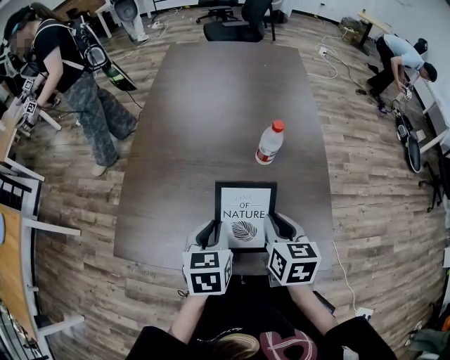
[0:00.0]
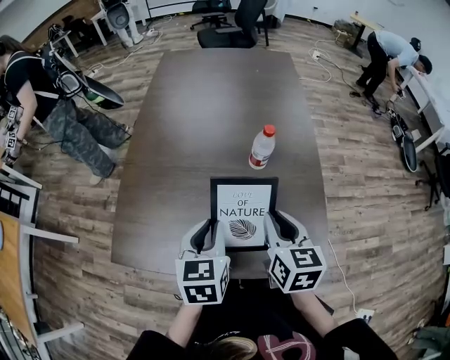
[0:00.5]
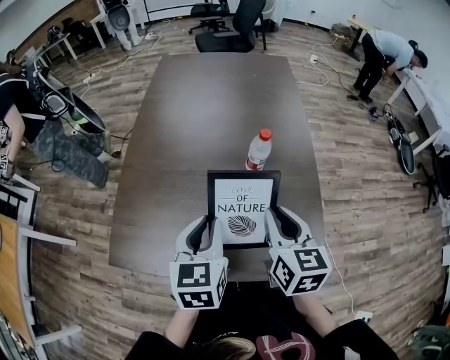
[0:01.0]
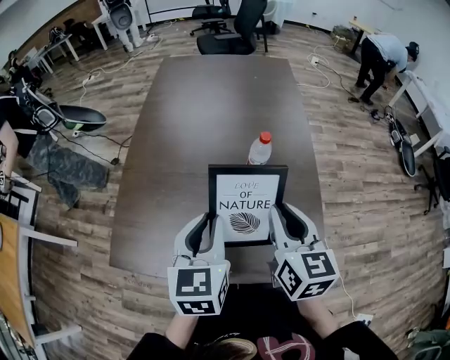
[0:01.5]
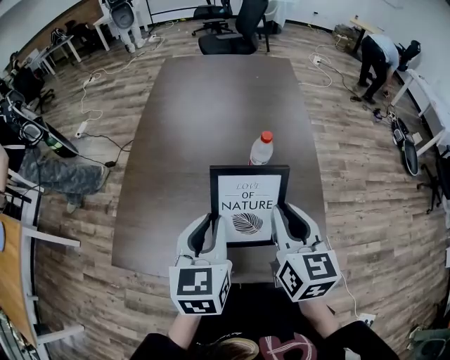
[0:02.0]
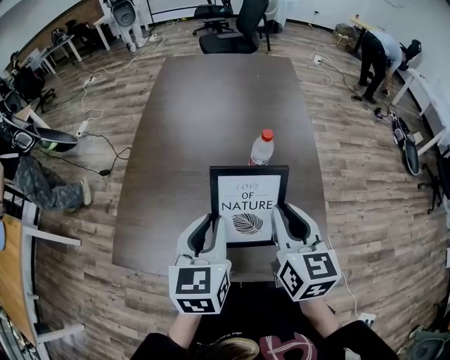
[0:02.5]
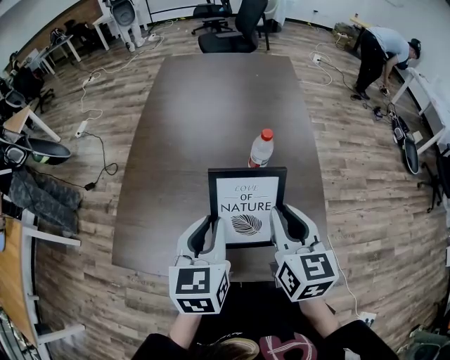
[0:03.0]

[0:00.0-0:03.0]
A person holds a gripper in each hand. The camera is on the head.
0:00.0 to 0:01.5: Both grippers travel together upward, about 10 cm.
0:01.5 to 0:03.0: The grippers stay close to where they were, moving slightly.

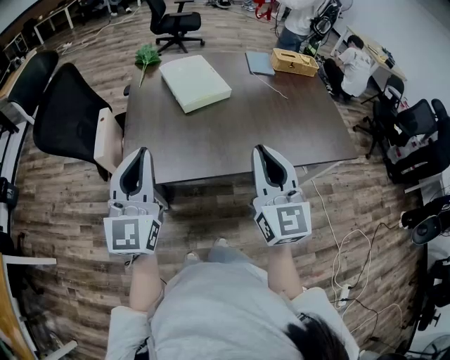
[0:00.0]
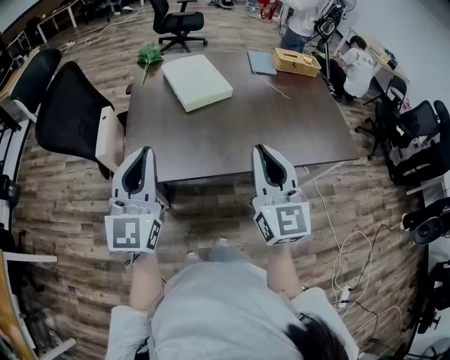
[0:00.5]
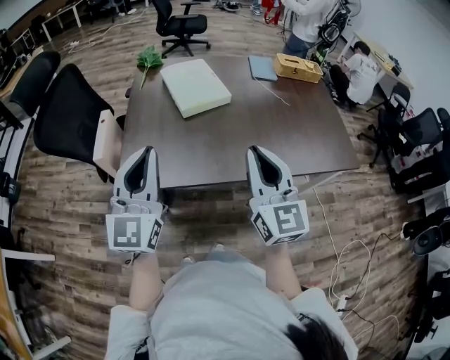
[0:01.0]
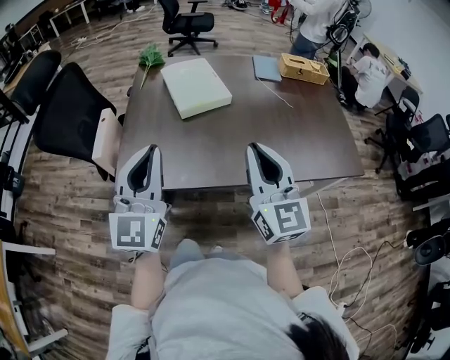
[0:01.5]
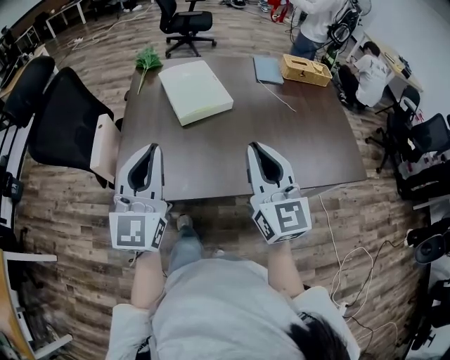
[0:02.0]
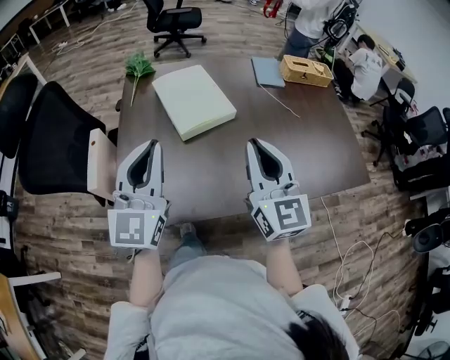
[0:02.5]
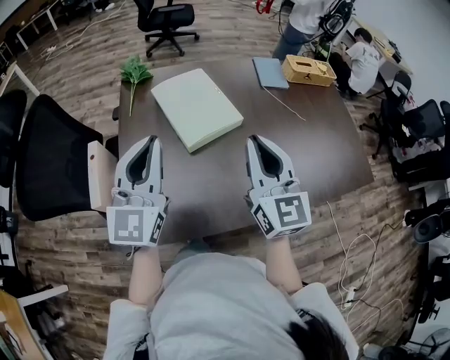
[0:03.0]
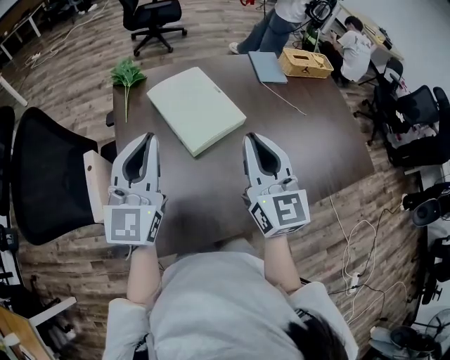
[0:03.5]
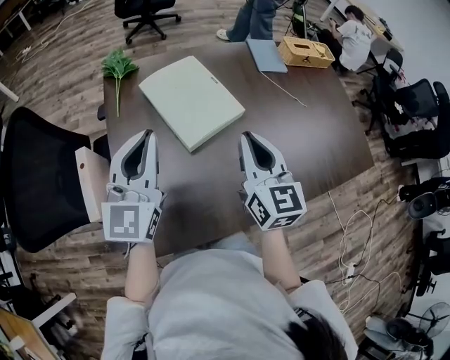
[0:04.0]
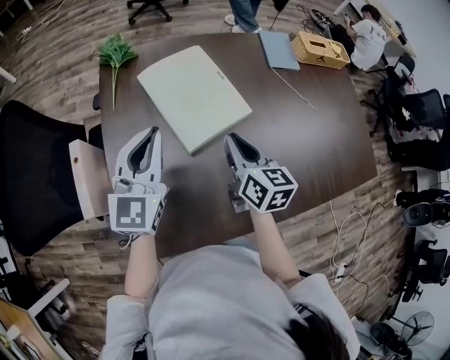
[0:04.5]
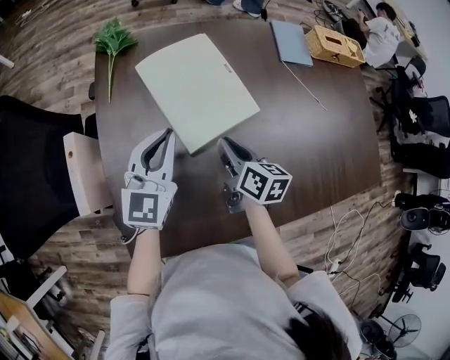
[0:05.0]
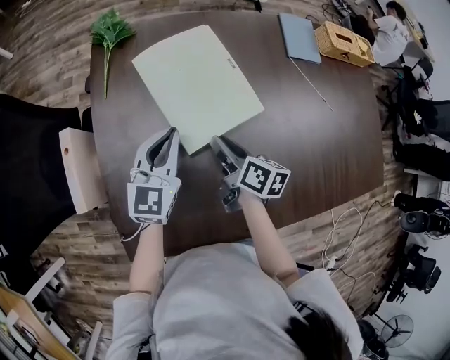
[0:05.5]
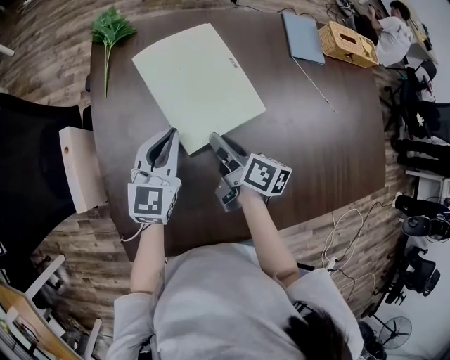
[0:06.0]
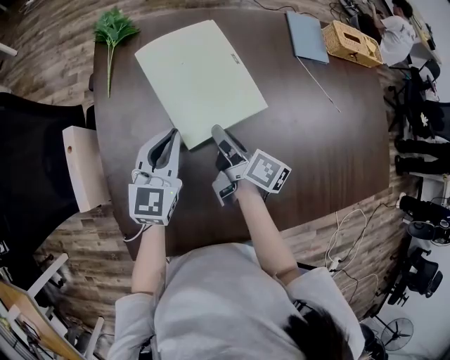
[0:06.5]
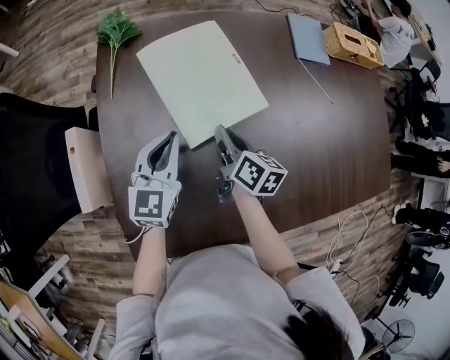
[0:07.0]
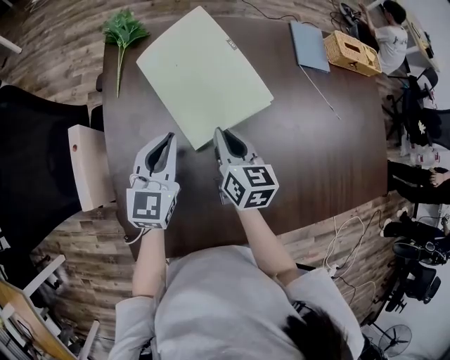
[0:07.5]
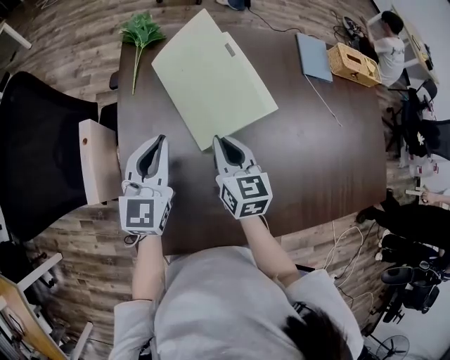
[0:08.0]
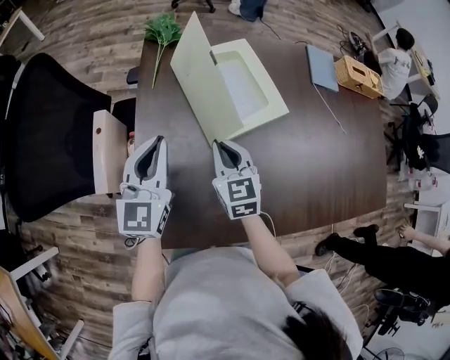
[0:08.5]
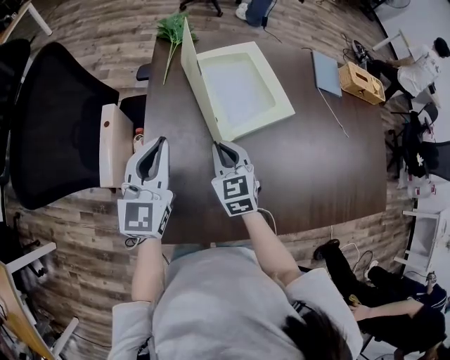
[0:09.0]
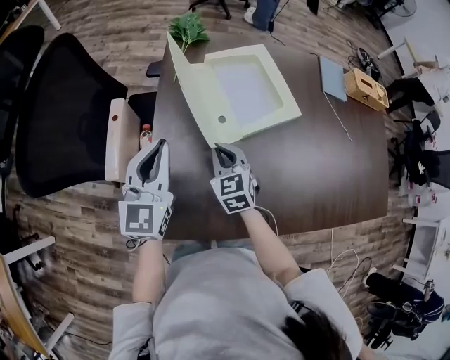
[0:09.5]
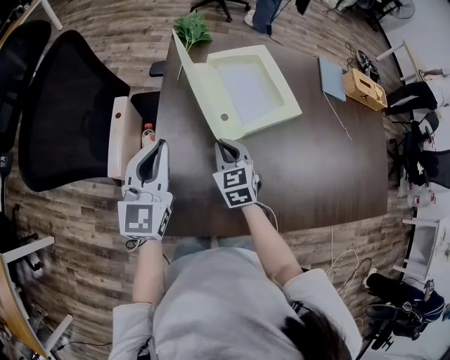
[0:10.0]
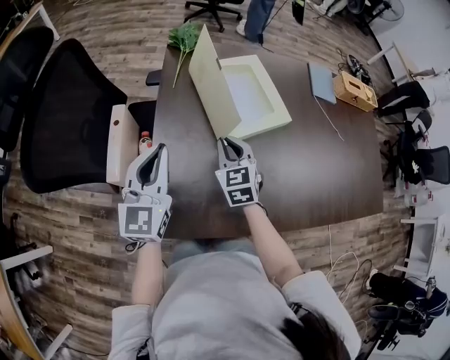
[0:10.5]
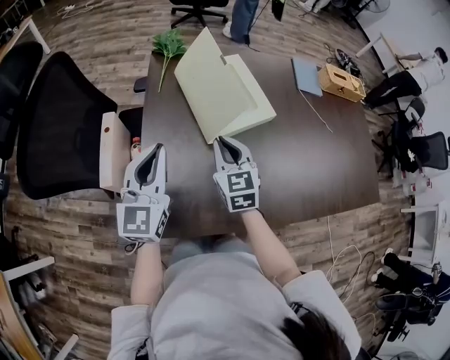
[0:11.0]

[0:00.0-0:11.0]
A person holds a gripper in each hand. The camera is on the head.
0:00.0 to 0:02.0: The left gripper heads forward and to the right, covering approximately 10 cm. The right gripper travels forward by about 10 cm.
0:02.0 to 0:03.5: The grippers both shift forward and to the left by approximately 25 cm.
0:03.5 to 0:05.5: Both grippers travel together downward and forward, some 25 cm. The right gripper twists about 50 degrees clockwise, seen from behind. Meanwhile the left gripper swivels about 20 degrees.
0:05.5 to 0:07.5: The right gripper shifts by about 5 cm, and turns by some 30 degrees.
0:07.5 to 0:09.0: The left gripper shifts about 20 cm to the left, backward and upward, while the right gripper shifts roughly 15 cm to the left and backward, and swivels about 40 degrees.
0:09.0 to 0:11.0: The left gripper shifts roughly 5 cm backward. Meanwhile the right gripper heads upward, covering roughly 5 cm.

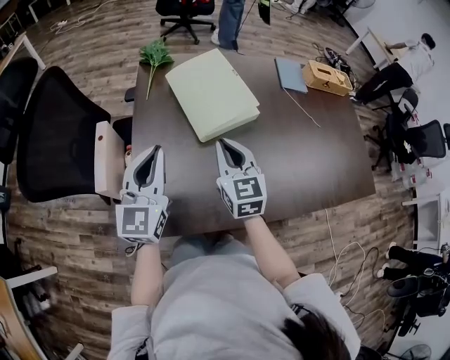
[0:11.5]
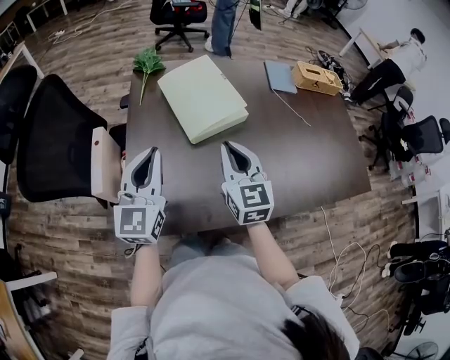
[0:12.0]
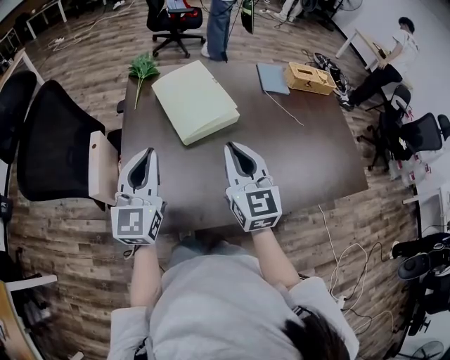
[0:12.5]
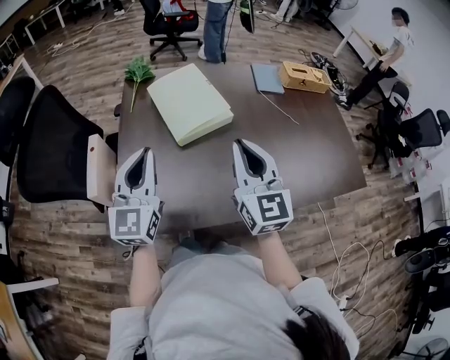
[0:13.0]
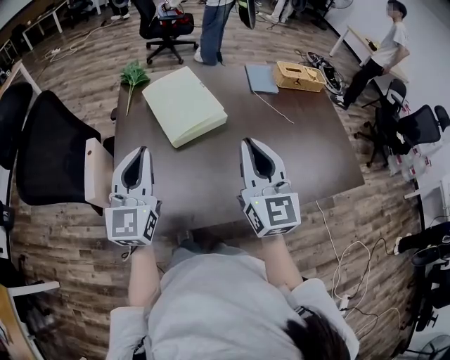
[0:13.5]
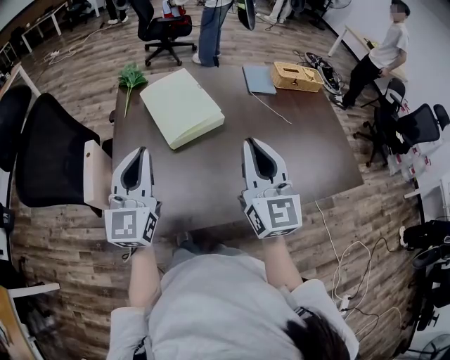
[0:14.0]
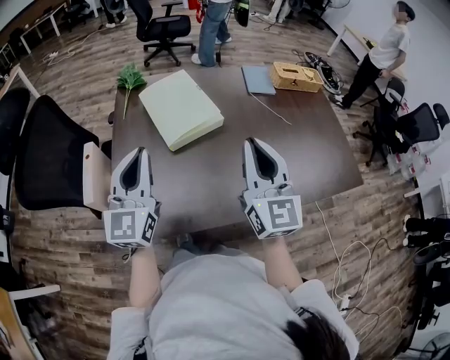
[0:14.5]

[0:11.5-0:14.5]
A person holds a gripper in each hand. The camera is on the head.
0:11.5 to 0:13.0: The left gripper travels to the right by roughly 5 cm. Meanwhile the right gripper is displaced to the right, upward and backward by about 20 cm.
0:13.0 to 0:14.5: The right gripper goes approximately 5 cm to the right.

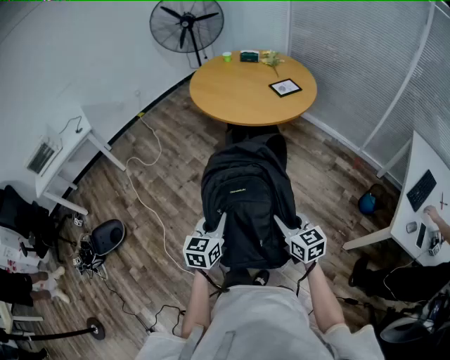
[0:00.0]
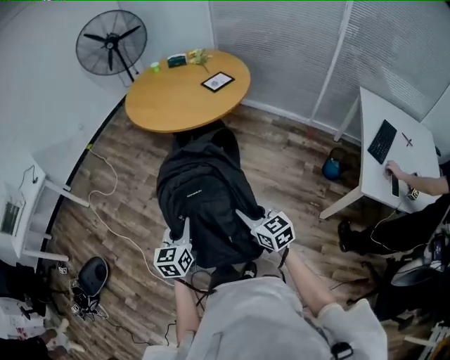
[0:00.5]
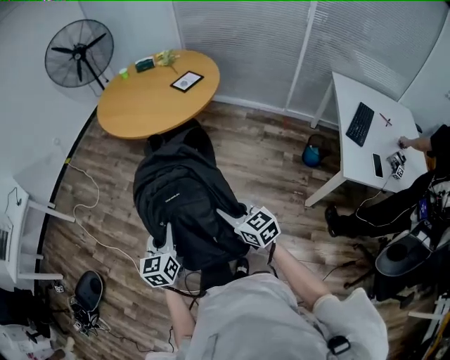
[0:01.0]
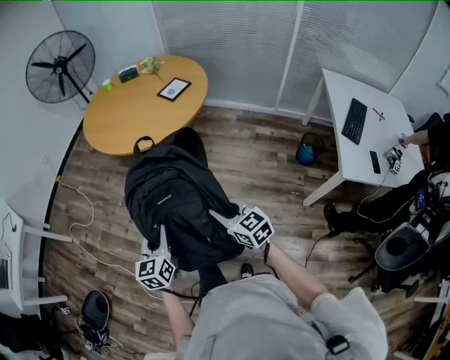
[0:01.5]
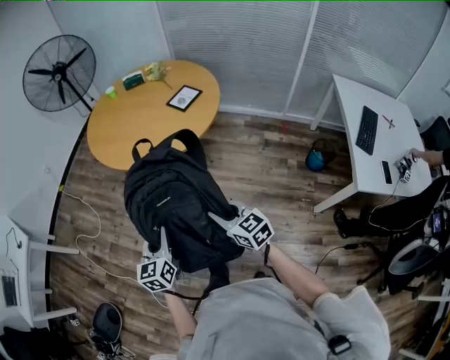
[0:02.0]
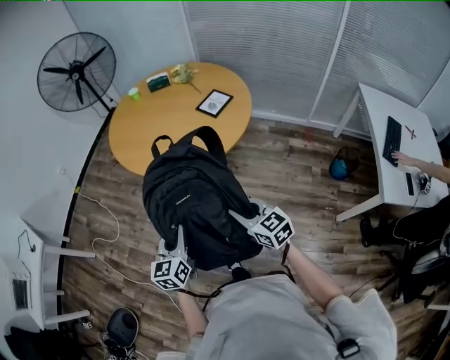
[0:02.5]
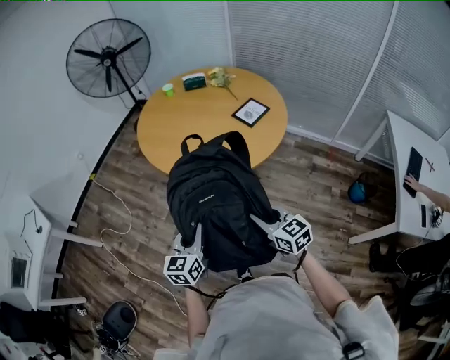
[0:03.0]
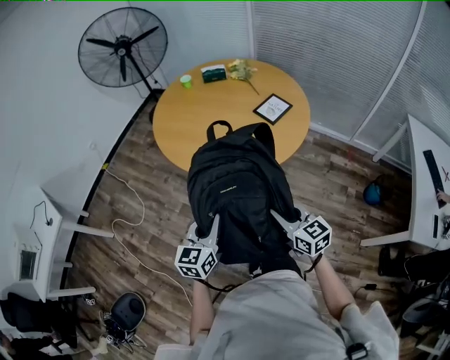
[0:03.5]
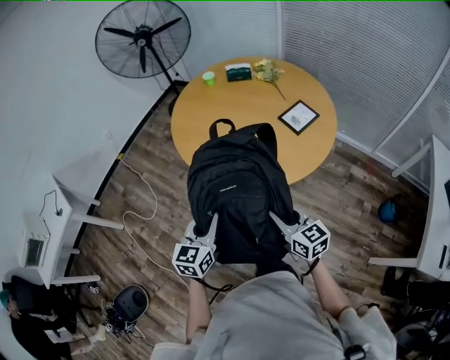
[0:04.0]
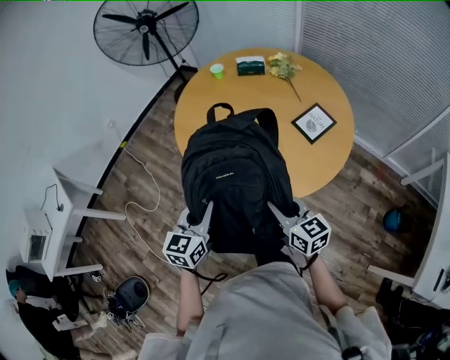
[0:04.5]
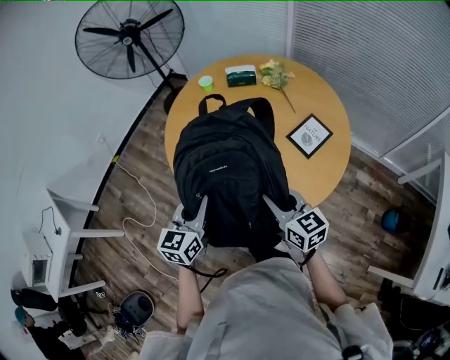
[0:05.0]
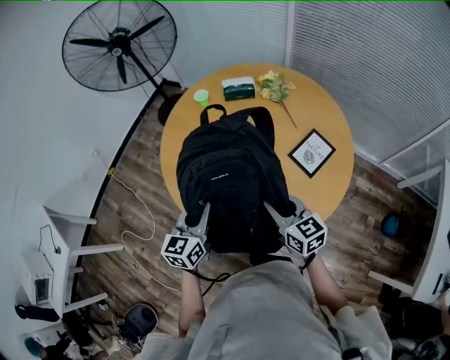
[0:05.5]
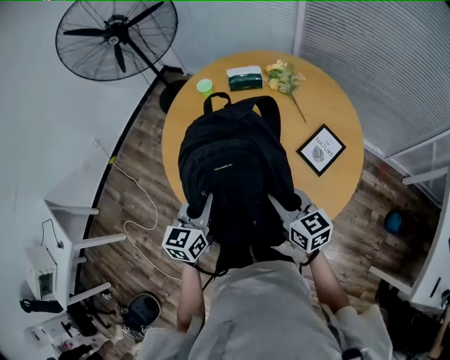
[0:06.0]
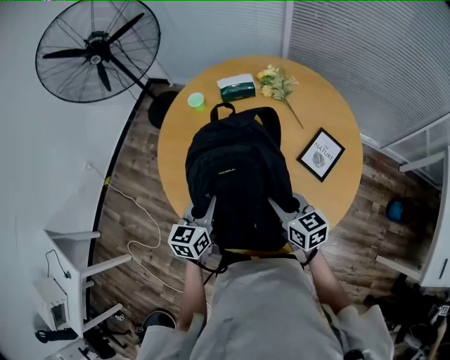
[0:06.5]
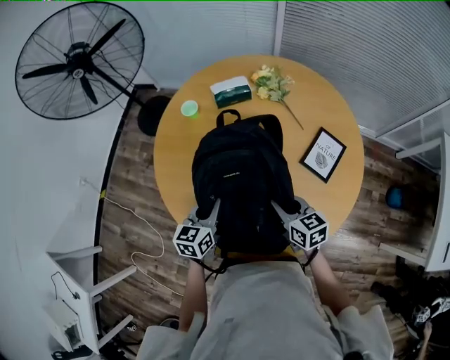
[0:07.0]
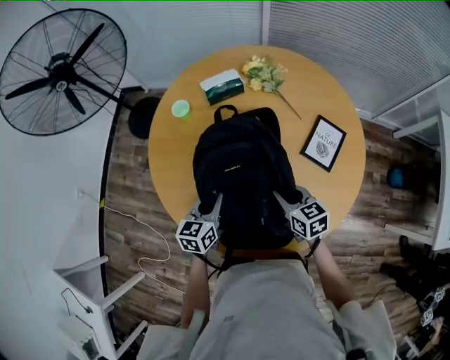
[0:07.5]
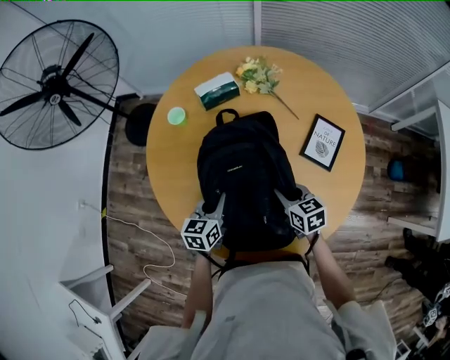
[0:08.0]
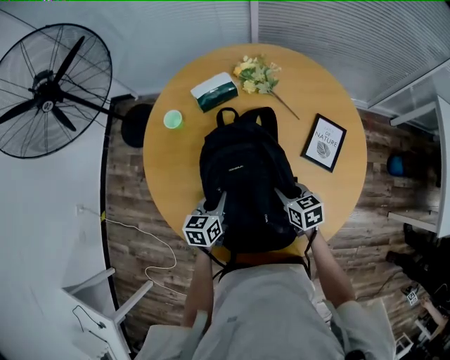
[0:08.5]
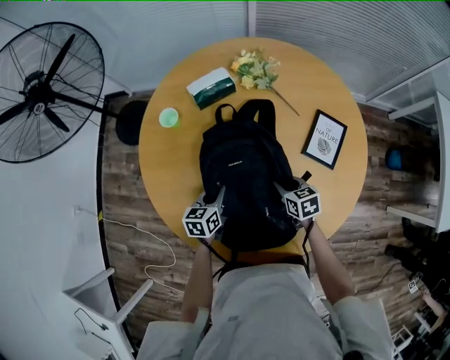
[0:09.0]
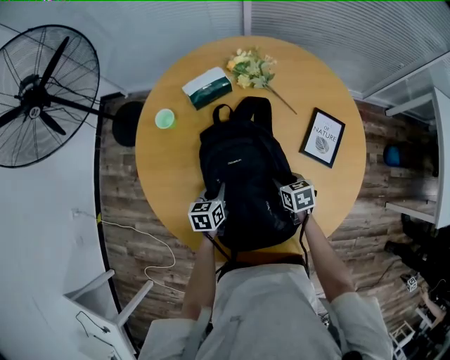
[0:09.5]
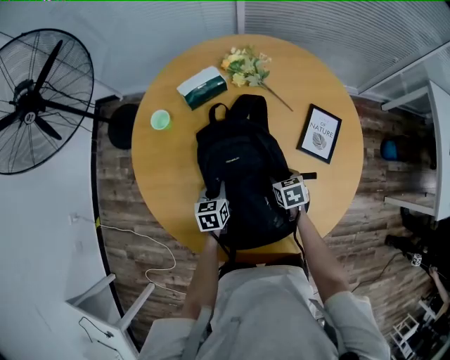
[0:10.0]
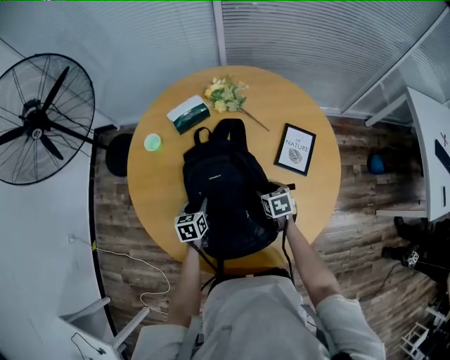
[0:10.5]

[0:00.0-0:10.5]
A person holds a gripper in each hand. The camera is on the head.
0:00.0 to 0:02.0: The grippers both shift forward by approximately 25 cm.
0:02.0 to 0:04.0: The two grippers go some 30 cm forward and to the left.
0:04.0 to 0:06.5: The two grippers go some 40 cm forward.
0:06.5 to 0:08.5: Both grippers travel together downward and forward, roughly 15 cm. The right gripper swivels roughly 20 degrees. Meanwhile the left gripper swivels approximately 20 degrees.
0:08.5 to 0:10.5: Both grippers travel together downward, approximately 5 cm. The left gripper opens. Meanwhile the right gripper opens its fingers.
